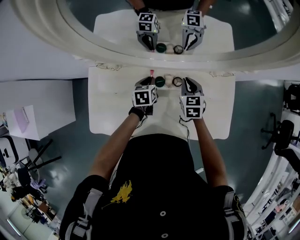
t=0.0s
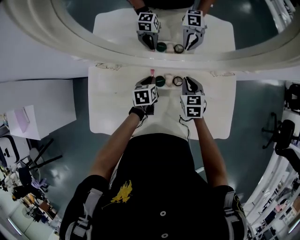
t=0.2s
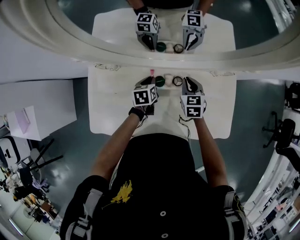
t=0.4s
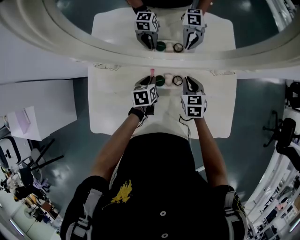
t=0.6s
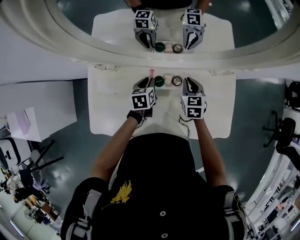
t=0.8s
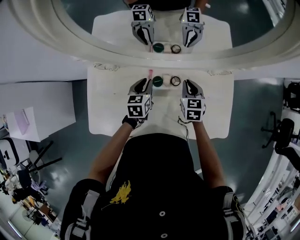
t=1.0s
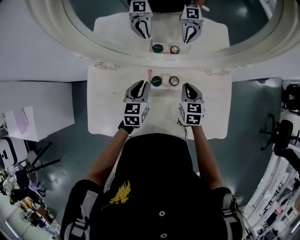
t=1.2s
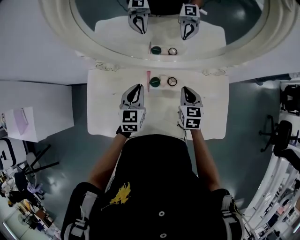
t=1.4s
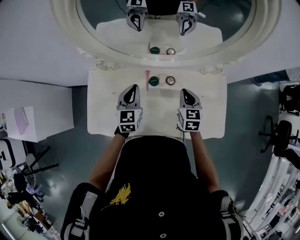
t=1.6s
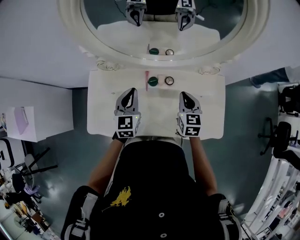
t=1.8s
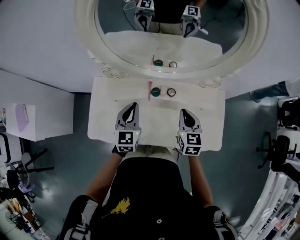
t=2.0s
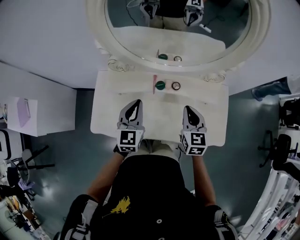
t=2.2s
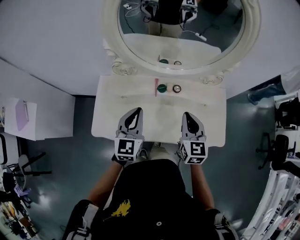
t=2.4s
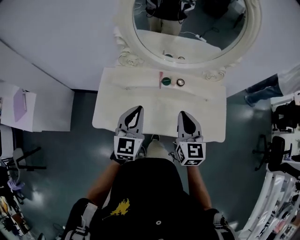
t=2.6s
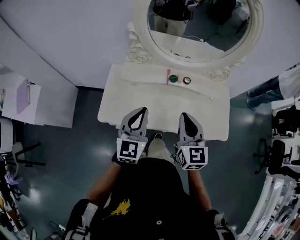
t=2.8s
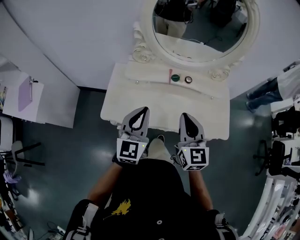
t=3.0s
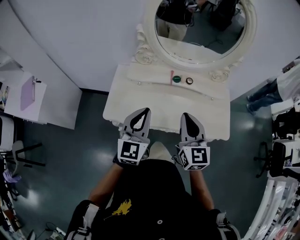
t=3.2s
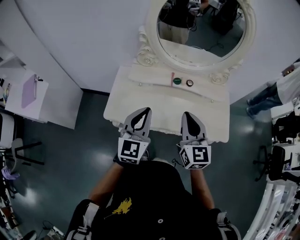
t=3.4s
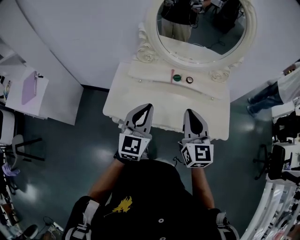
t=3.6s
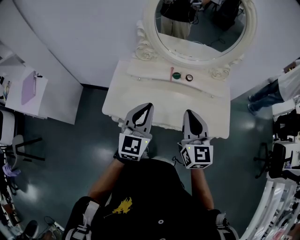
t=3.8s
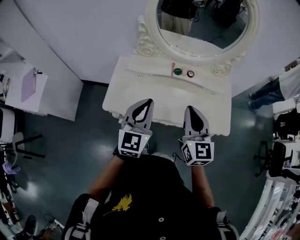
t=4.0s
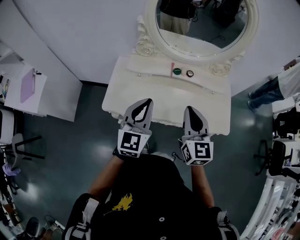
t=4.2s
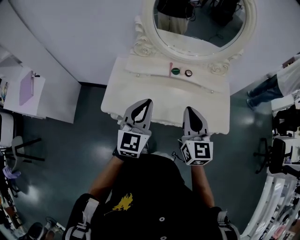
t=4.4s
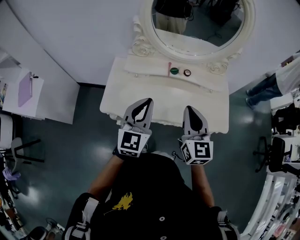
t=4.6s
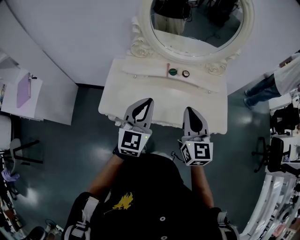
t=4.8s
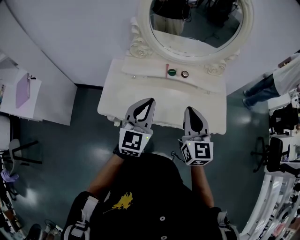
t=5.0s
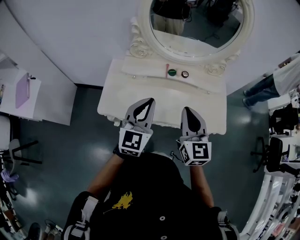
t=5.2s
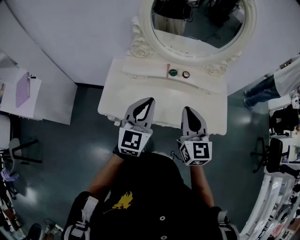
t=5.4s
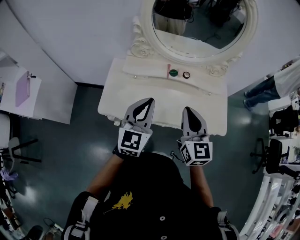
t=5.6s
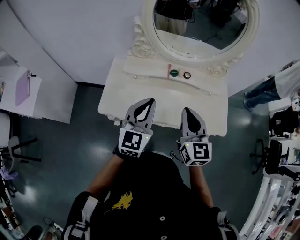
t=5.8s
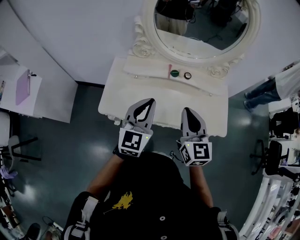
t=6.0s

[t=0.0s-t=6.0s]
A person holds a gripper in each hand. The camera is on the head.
t=0.0s to t=1.6s: The left gripper moves upward and backward, approximately 15 cm, and rotates about 30 degrees. The right gripper heads backward and upward, covering about 10 cm.
t=1.6s to t=3.0s: The left gripper shifts approximately 35 cm backward and upward; the right gripper moves backward, upward and to the left, some 40 cm, and rotates some 30 degrees.
t=3.0s to t=6.0s: There are only small adjustments of the grippers.

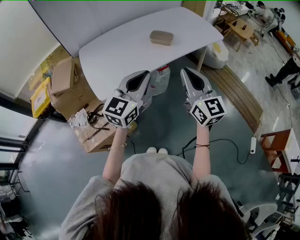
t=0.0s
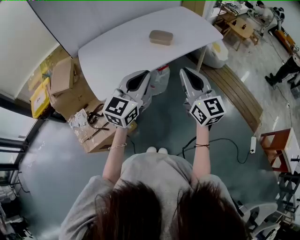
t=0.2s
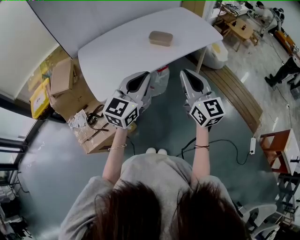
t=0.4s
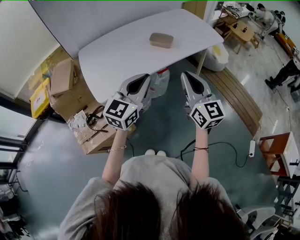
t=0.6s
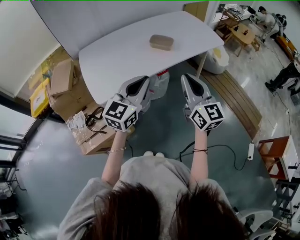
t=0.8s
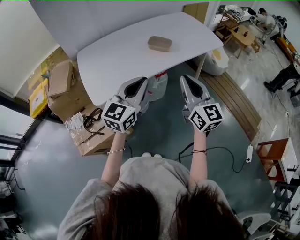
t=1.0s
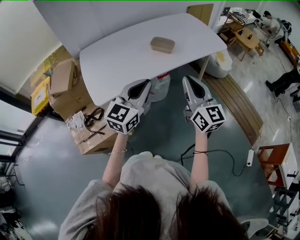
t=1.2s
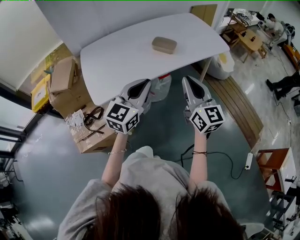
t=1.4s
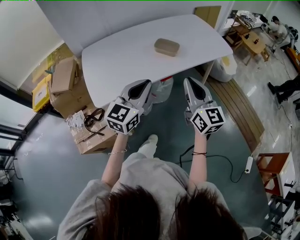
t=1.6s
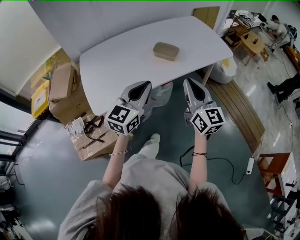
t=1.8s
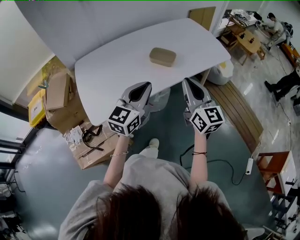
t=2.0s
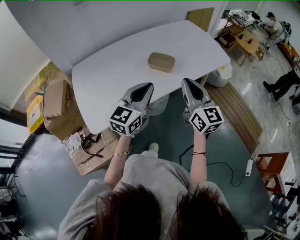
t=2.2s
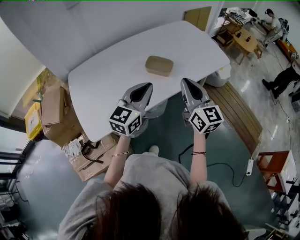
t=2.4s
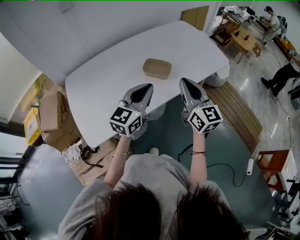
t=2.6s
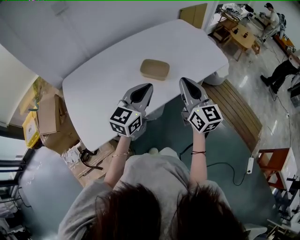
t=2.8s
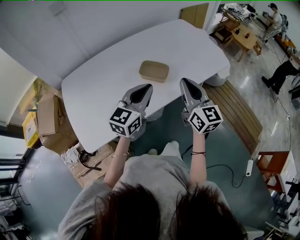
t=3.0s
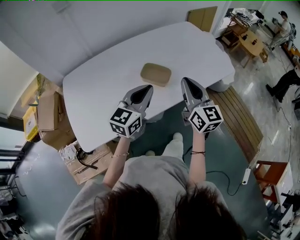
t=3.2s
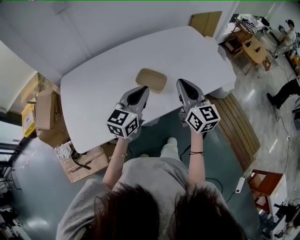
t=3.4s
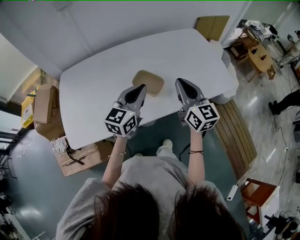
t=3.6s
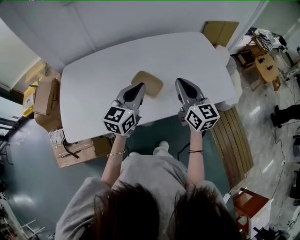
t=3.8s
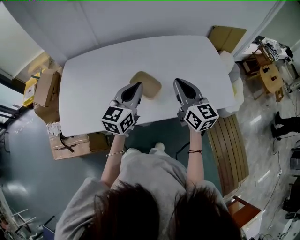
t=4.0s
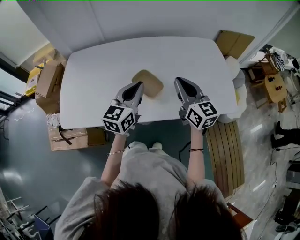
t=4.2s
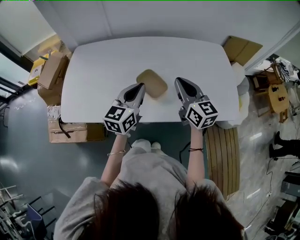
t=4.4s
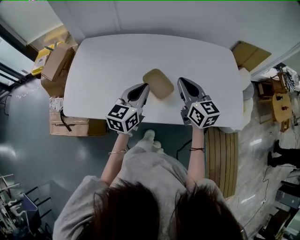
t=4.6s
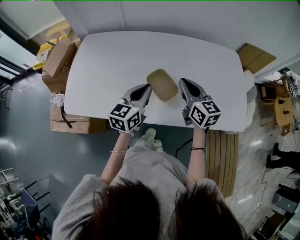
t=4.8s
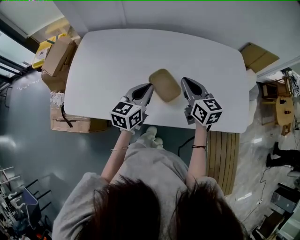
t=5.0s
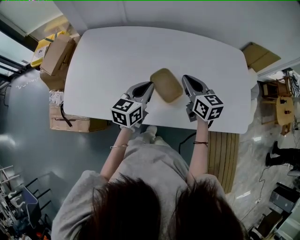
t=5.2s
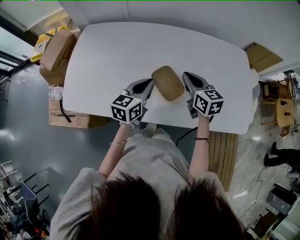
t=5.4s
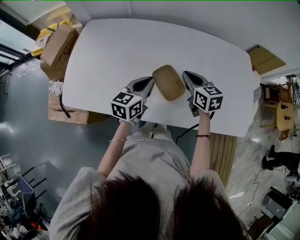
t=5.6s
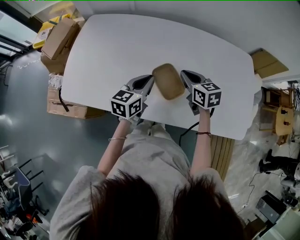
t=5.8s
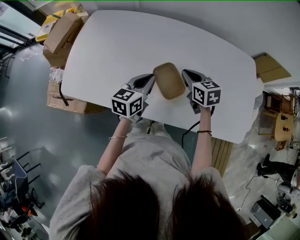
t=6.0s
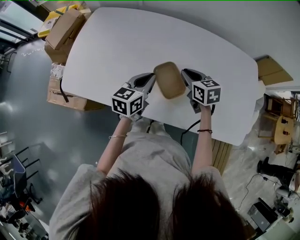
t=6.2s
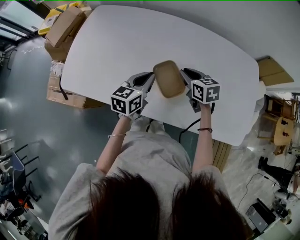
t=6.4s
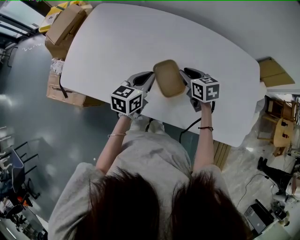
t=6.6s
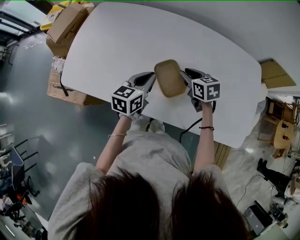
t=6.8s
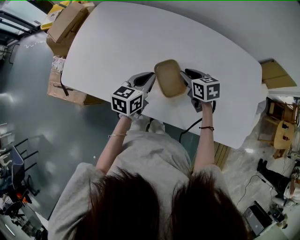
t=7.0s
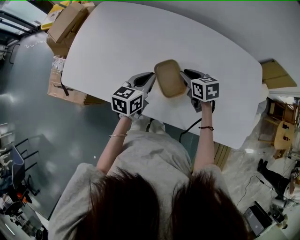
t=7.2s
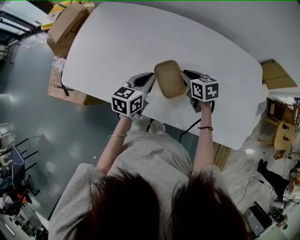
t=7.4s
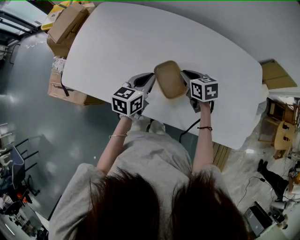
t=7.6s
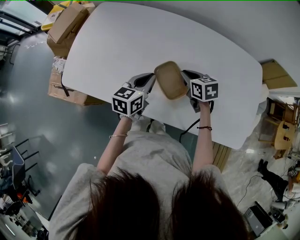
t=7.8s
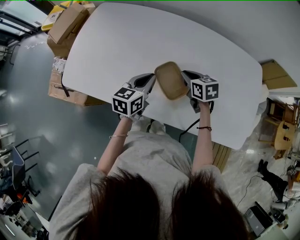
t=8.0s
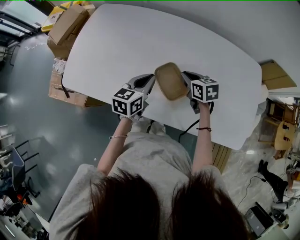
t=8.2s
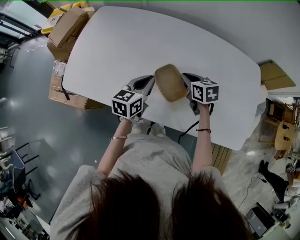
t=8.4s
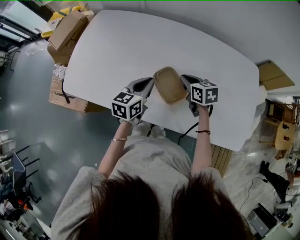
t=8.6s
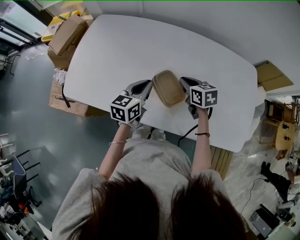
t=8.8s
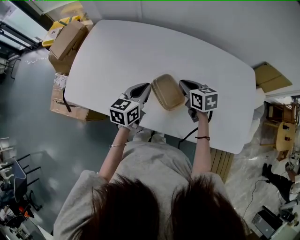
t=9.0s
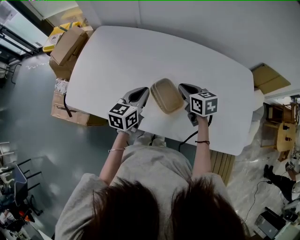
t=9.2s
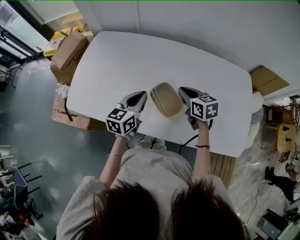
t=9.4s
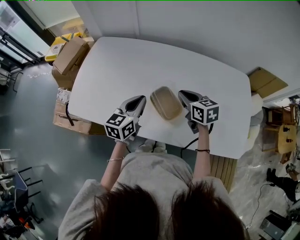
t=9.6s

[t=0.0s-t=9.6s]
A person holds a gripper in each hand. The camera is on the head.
t=0.0s to t=1.6s: The grippers both shift forward by some 5 cm.
t=1.6s to t=3.2s: Both grippers move forward, approximately 25 cm.
t=3.2s to t=4.8s: The right gripper changes place by roughly 20 cm, and rotates approximately 40 degrees. Meanwhile the left gripper ends up about 10 cm from where it was, and changes its angle by about 40 degrees.
t=4.8s to t=6.4s: The right gripper moves downward and forward, approximately 15 cm, and changes its angle by about 30 degrees, while the left gripper moves downward, some 5 cm.
t=6.4s to t=8.0s: The grippers stay close to where they were, moving slightly.
t=8.0s to t=9.6s: The grippers both shift upward by some 10 cm.

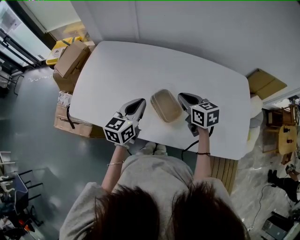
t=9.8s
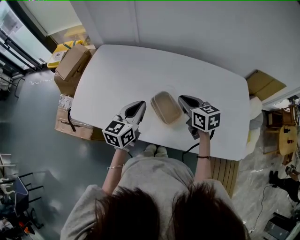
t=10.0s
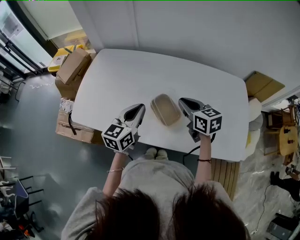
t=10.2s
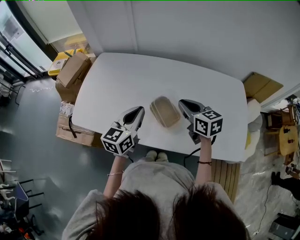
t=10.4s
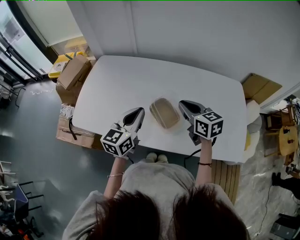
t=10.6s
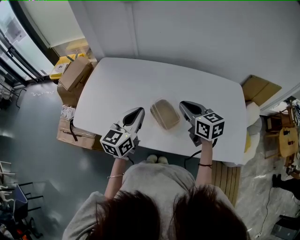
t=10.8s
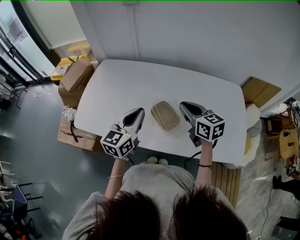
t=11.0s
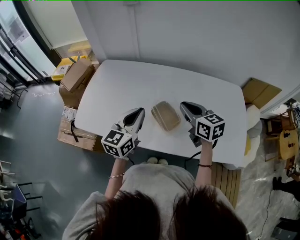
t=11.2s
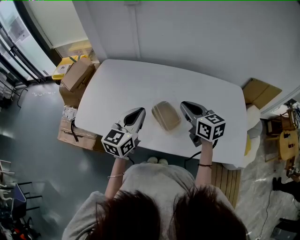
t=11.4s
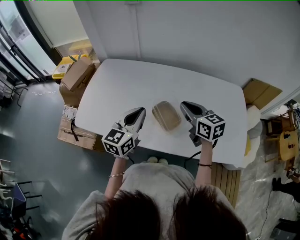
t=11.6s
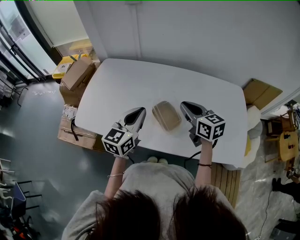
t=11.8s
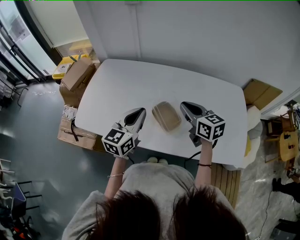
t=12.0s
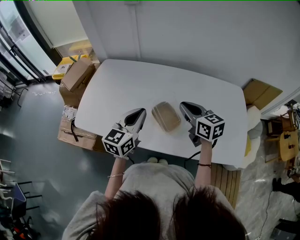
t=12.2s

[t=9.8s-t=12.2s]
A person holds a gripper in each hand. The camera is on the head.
t=9.8s to t=11.0s: The two grippers go some 10 cm upward.
t=11.0s to t=12.2s: Neither gripper changes place.

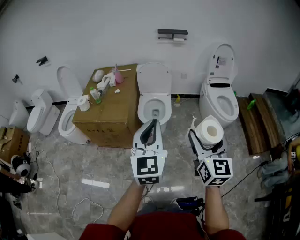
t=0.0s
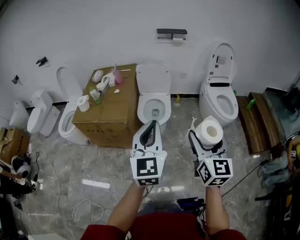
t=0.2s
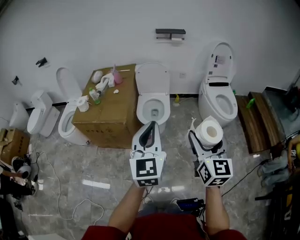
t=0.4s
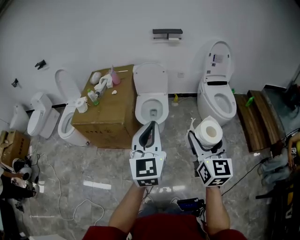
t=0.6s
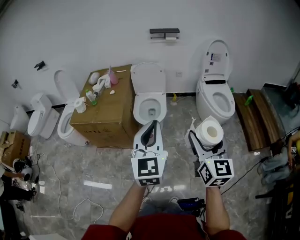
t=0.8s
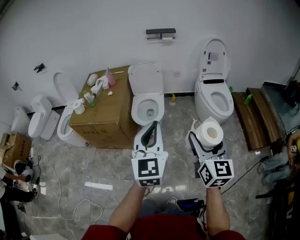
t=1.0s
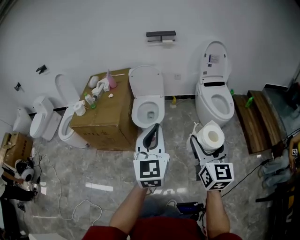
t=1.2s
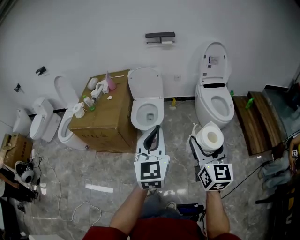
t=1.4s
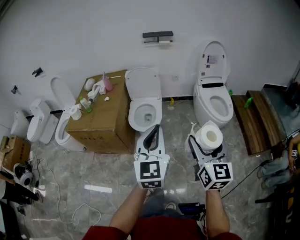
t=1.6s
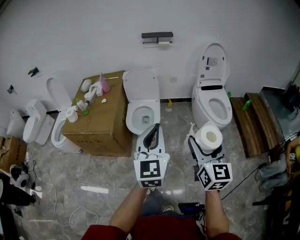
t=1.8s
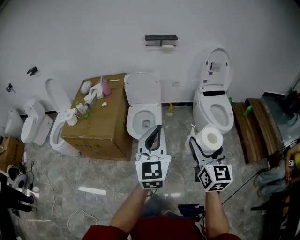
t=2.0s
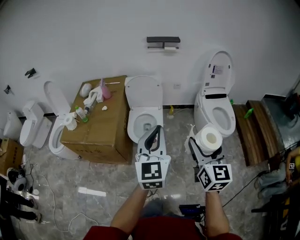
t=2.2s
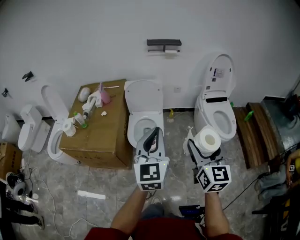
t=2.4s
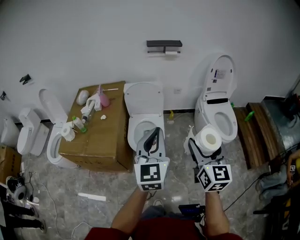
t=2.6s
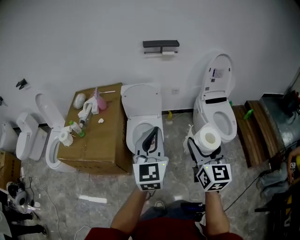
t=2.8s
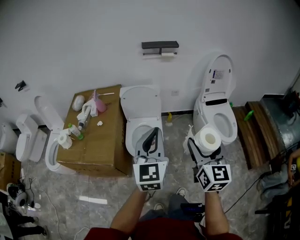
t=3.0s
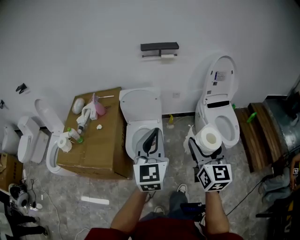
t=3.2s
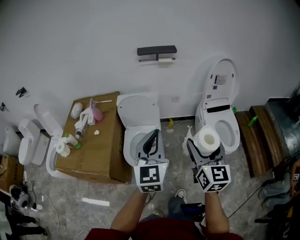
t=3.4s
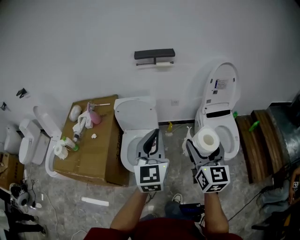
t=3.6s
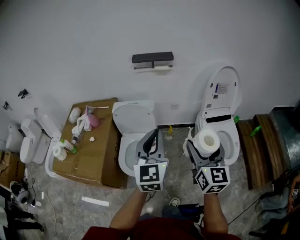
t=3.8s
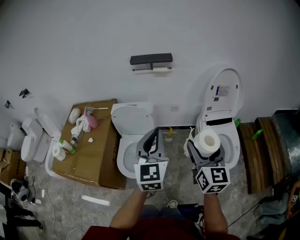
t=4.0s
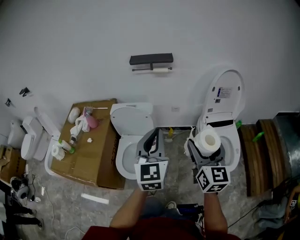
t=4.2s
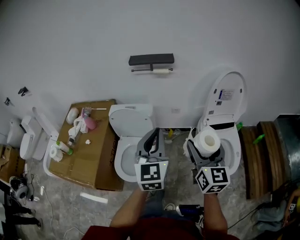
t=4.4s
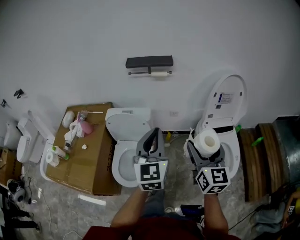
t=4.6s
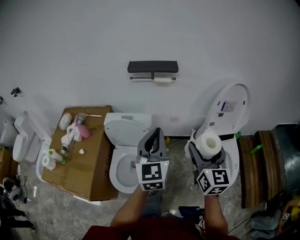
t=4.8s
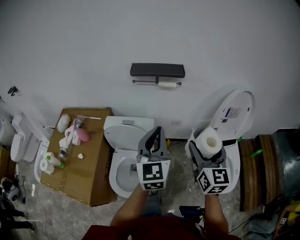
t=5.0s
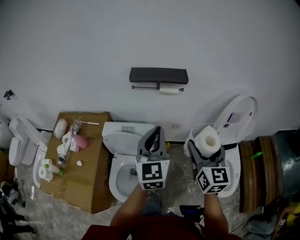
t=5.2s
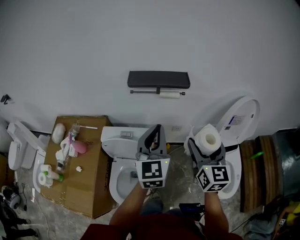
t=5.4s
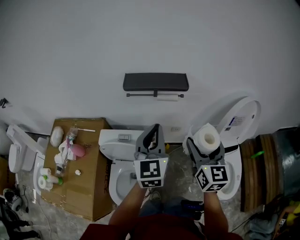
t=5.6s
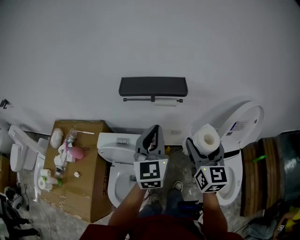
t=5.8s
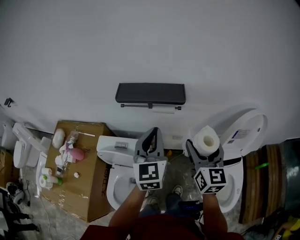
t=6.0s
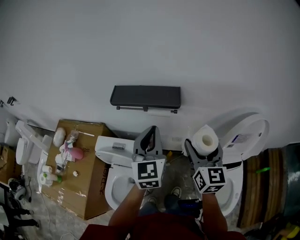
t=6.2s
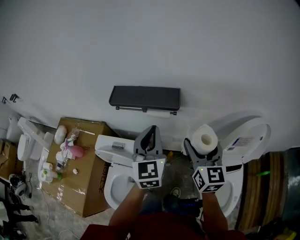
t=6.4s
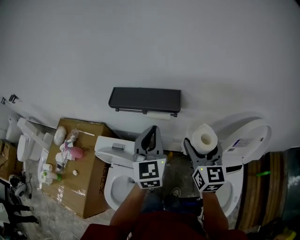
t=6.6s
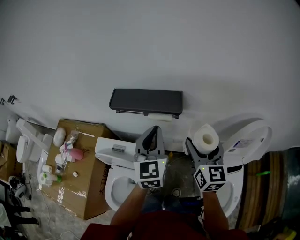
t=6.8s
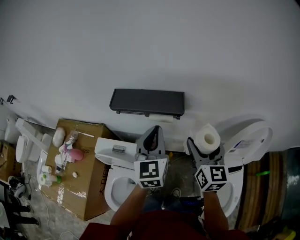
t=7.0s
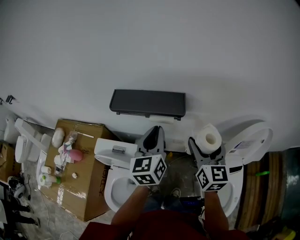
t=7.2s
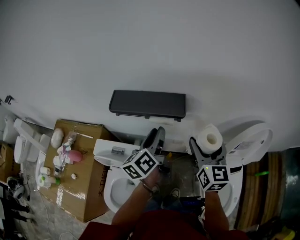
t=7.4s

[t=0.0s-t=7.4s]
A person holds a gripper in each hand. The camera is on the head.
t=0.0s to t=1.4s: The two grippers go roughly 15 cm to the right.
t=1.4s to t=3.0s: The grippers both shift forward by roughly 30 cm.
t=3.0s to t=4.4s: Both grippers move forward and to the right, approximately 30 cm.
t=4.4s to t=6.0s: The pair of grippers is taken forward, roughly 40 cm.
t=6.0s to t=7.4s: The right gripper shifts some 10 cm forward. Meanwhile the left gripper moves forward and downward, approximately 10 cm, rotates around the line of its fingers by approximately 50 degrees, counterclockwise from behind, and opens up.
